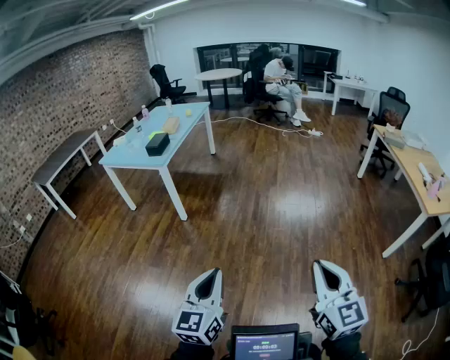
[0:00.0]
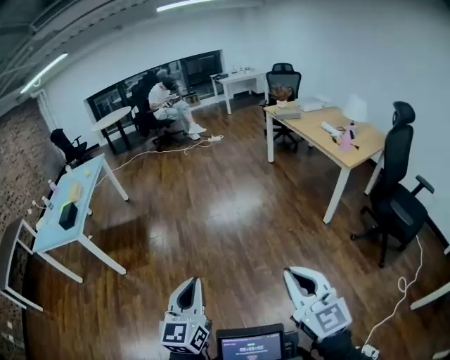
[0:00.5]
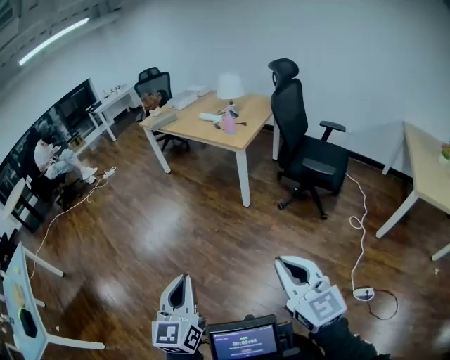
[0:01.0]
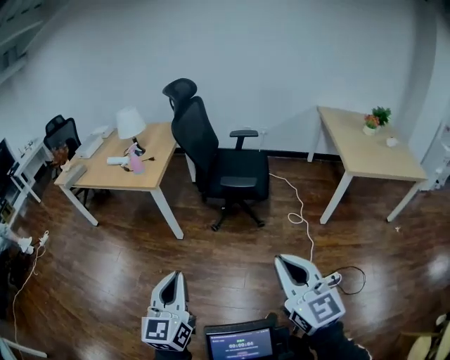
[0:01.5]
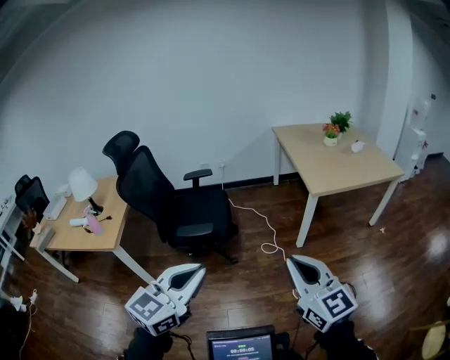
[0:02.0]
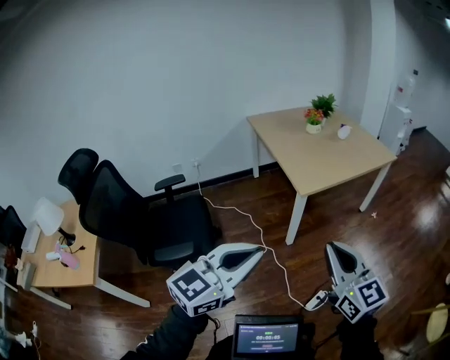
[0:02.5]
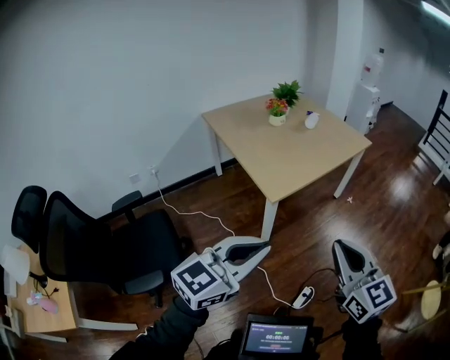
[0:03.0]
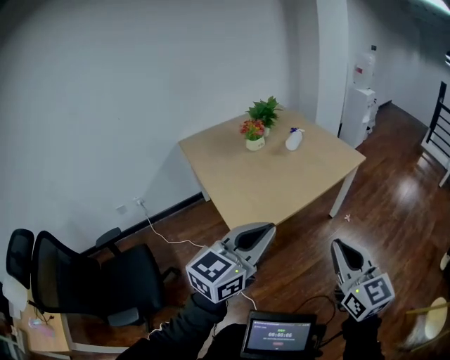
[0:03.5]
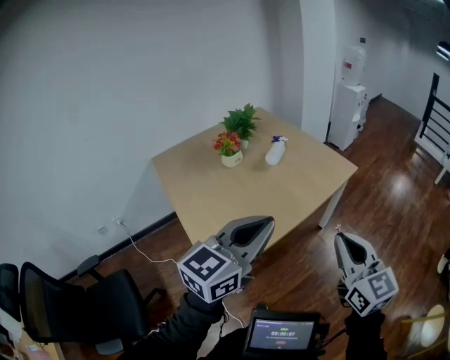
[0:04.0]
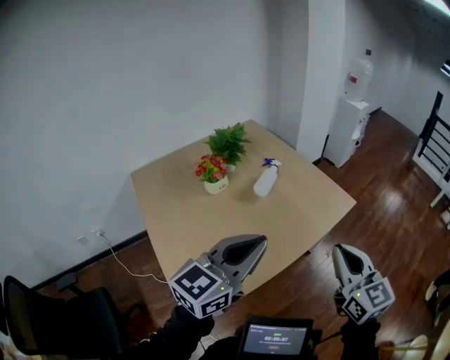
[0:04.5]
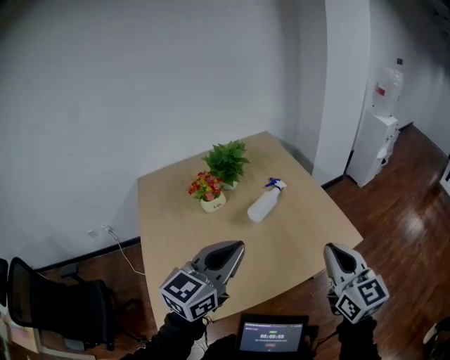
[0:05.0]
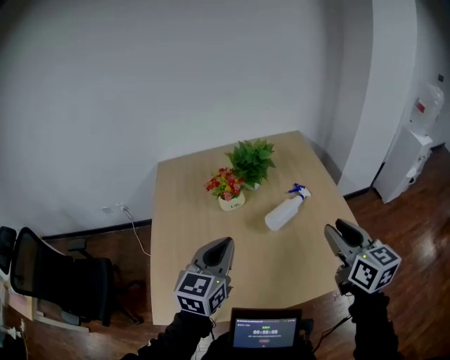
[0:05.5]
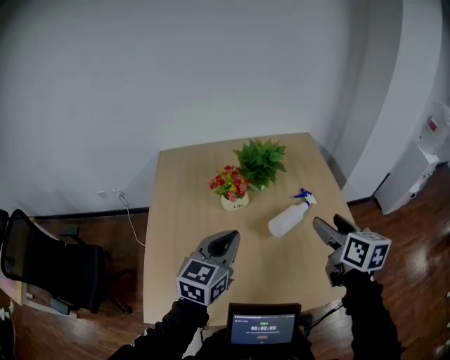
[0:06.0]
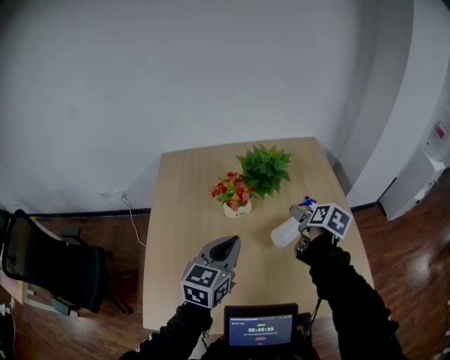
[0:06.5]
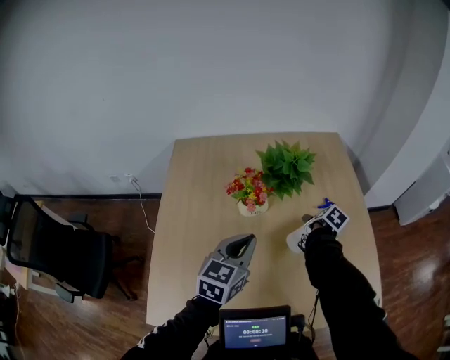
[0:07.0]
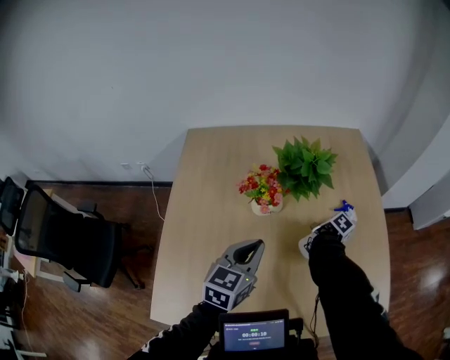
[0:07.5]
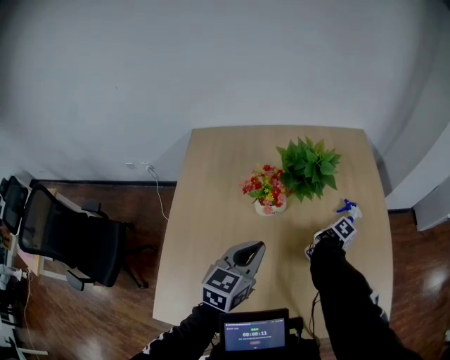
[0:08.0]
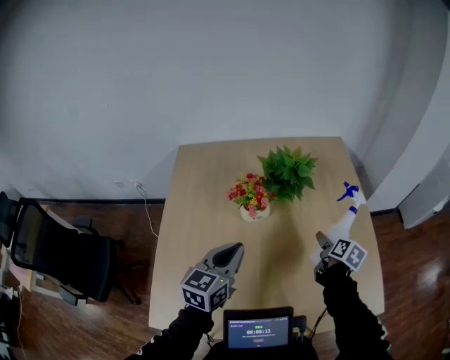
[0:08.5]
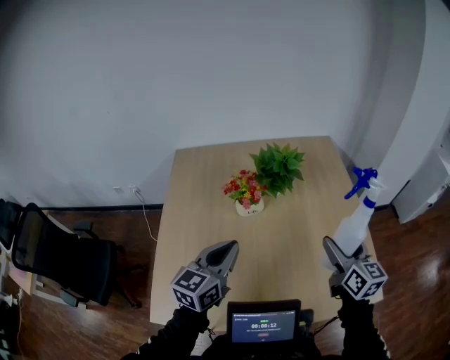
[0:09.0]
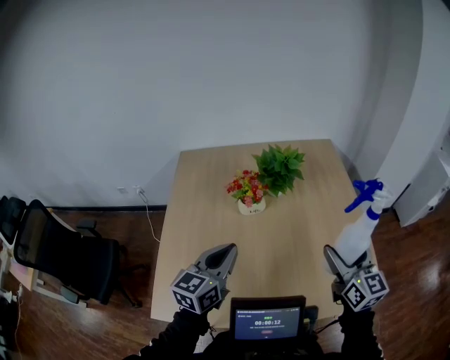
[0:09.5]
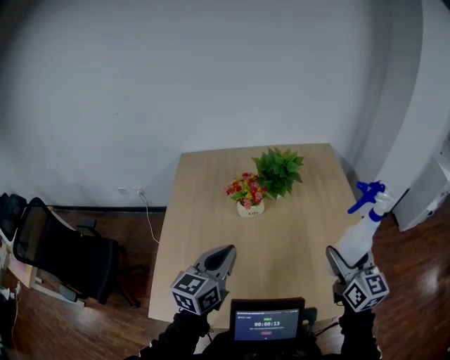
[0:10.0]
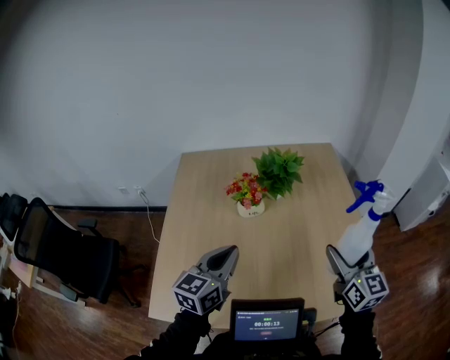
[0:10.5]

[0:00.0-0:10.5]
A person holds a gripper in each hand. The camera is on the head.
0:00.0 to 0:02.0: Both grippers are carried roughly 1 m. The left gripper turns by about 130 degrees. The right gripper swivels approximately 90 degrees.
0:02.0 to 0:04.0: The pair of grippers is taken roughly 1 m. The left gripper swivels approximately 40 degrees. Meanwhile the right gripper turns by some 40 degrees.
0:04.0 to 0:06.5: Both grippers are carried approximately 70 cm. The right gripper points its fingers some 40 degrees further downward, and opens up, while the left gripper swivels approximately 50 degrees.
0:06.5 to 0:08.5: The left gripper is displaced forward and to the left by about 5 cm; the right gripper goes some 15 cm downward and forward.
0:08.5 to 0:10.5: The right gripper travels upward and backward by about 30 cm, and angles its fingers upward, by some 40 degrees. Meanwhile the left gripper goes approximately 10 cm backward.

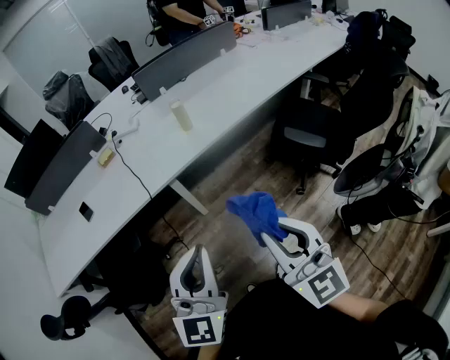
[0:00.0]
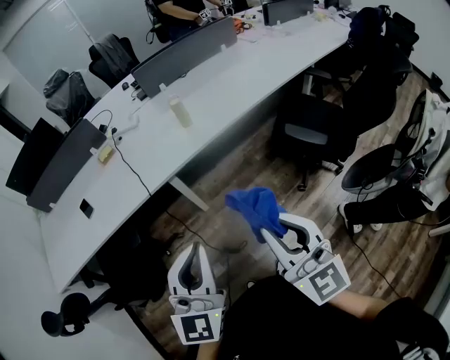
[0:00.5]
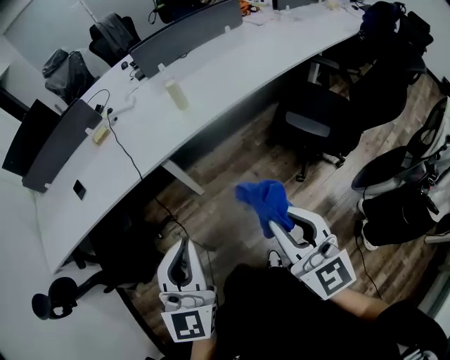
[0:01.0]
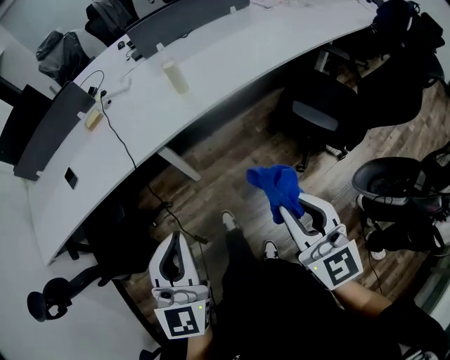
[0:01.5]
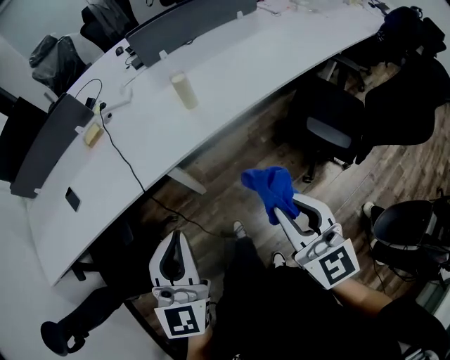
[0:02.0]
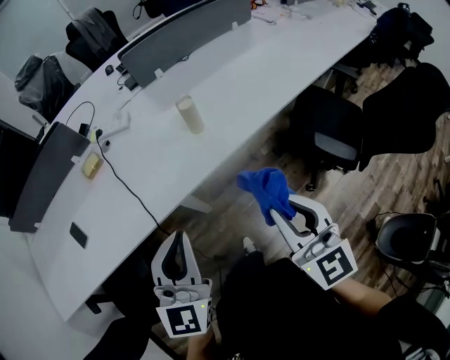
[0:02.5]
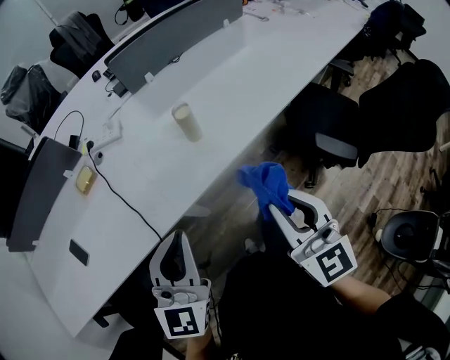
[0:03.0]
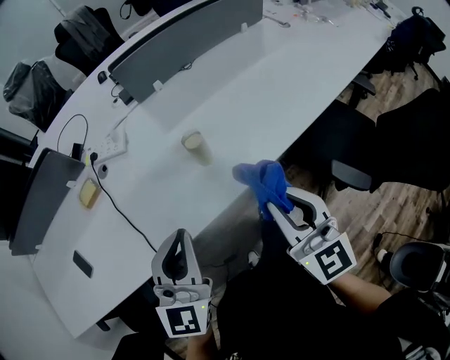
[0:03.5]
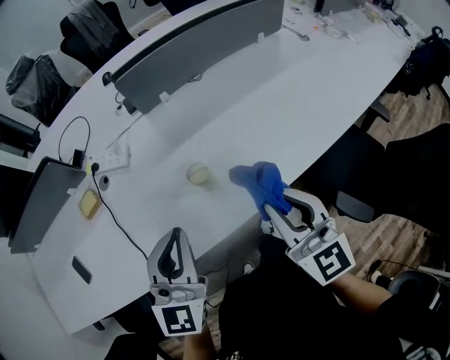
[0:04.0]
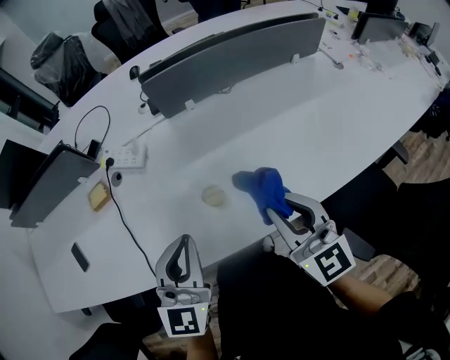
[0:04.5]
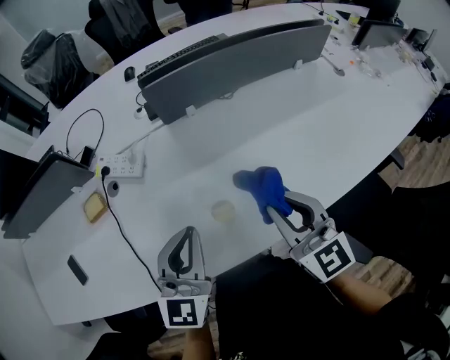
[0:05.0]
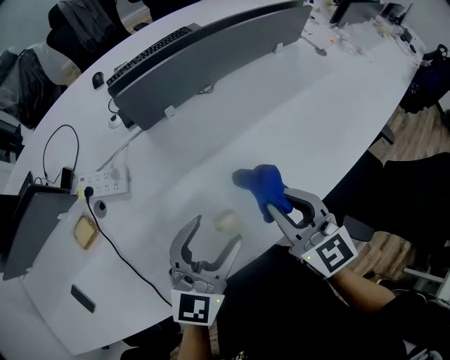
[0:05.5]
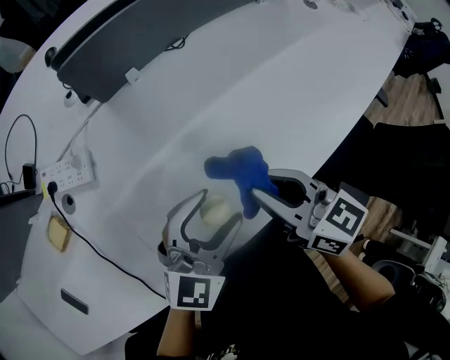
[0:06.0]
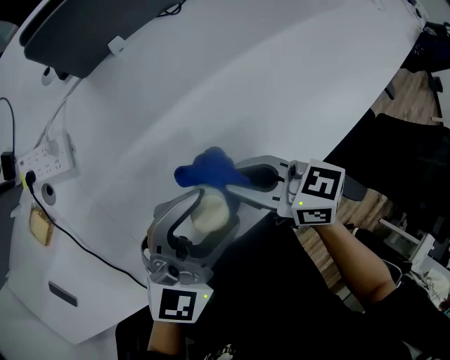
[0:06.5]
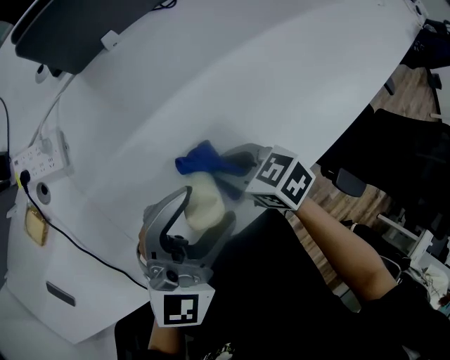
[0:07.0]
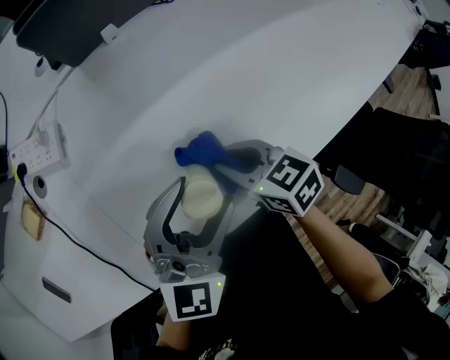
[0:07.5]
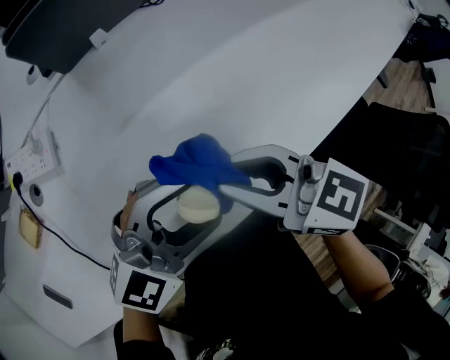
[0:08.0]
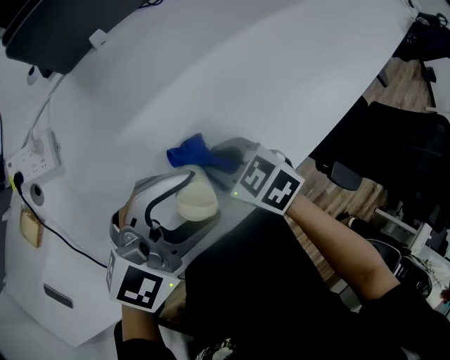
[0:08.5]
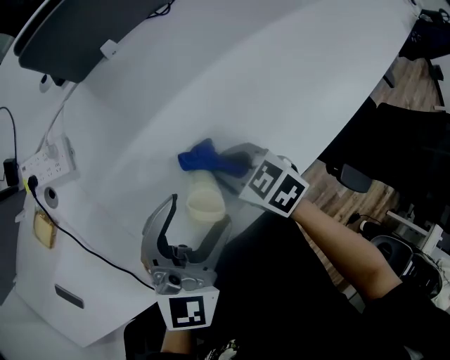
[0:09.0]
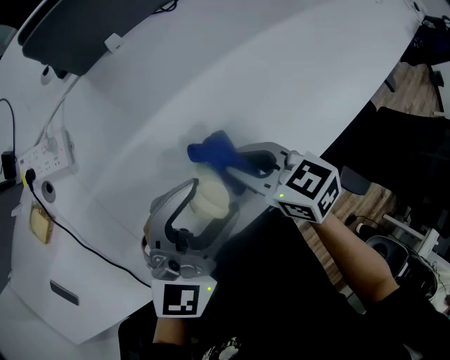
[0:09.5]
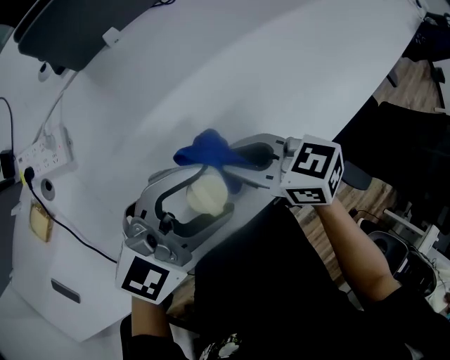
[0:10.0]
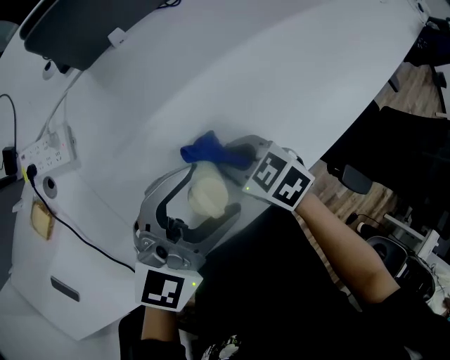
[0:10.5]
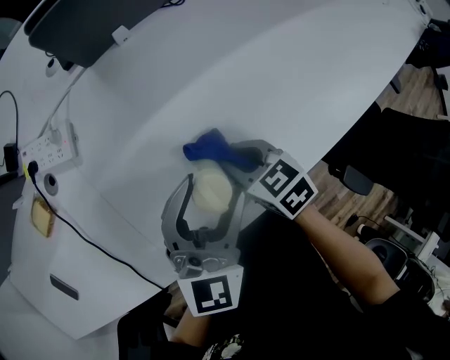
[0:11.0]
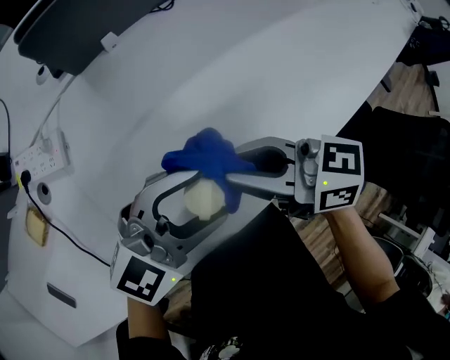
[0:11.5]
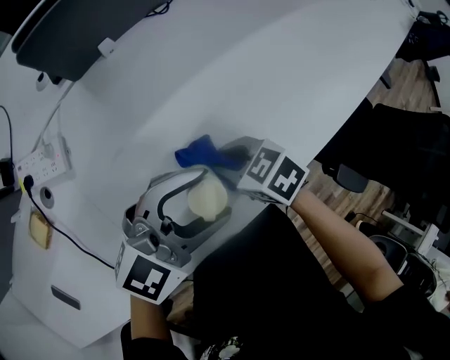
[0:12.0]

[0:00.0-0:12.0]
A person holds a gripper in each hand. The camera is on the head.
0:00.0 to 0:02.0: The right gripper is displaced forward and downward by about 15 cm. The left gripper moves forward, some 15 cm.
0:02.0 to 0:04.0: The grippers both shift forward by about 35 cm.
0:04.0 to 0:06.0: The left gripper heads downward, forward and to the right, covering about 20 cm, changes its angle by some 40 degrees, and opens up, while the right gripper moves forward and downward, approximately 15 cm, and changes its angle by some 30 degrees.
0:06.0 to 0:08.0: The left gripper swivels about 20 degrees. The right gripper goes downward and returns, approximately 15 cm each way.
0:08.0 to 0:10.0: The right gripper travels downward by roughly 10 cm.
0:10.0 to 0:12.0: The right gripper swings up and down, roughly 15 cm each way, with 2 reversals, and changes its angle by some 20 degrees.

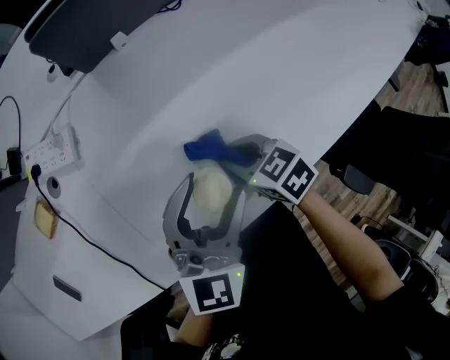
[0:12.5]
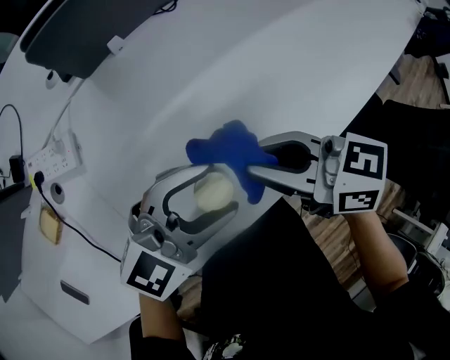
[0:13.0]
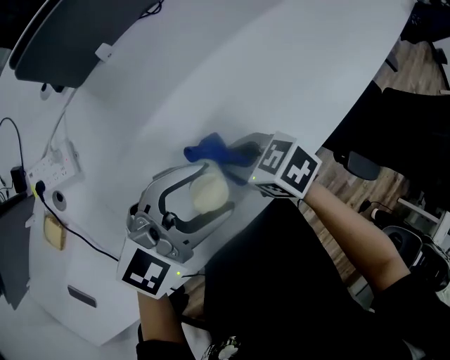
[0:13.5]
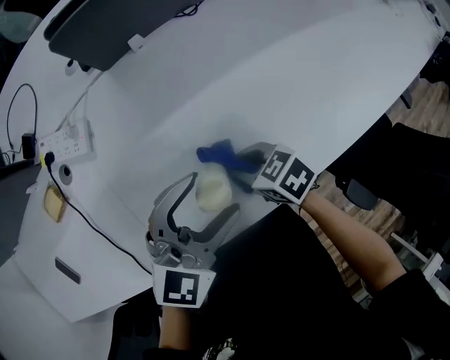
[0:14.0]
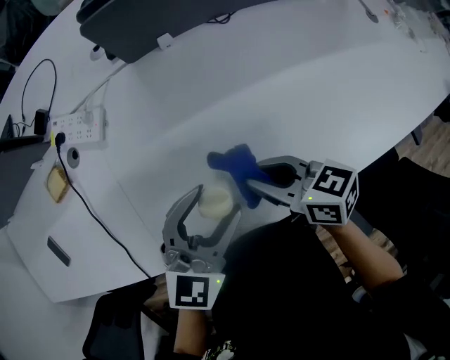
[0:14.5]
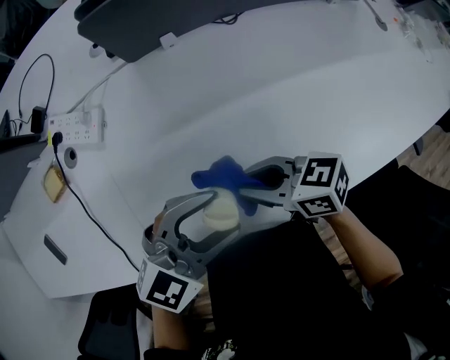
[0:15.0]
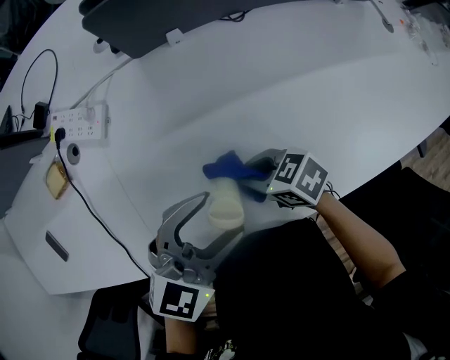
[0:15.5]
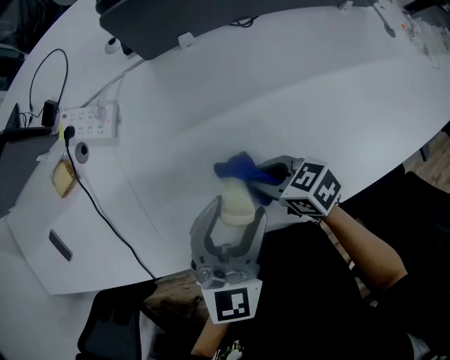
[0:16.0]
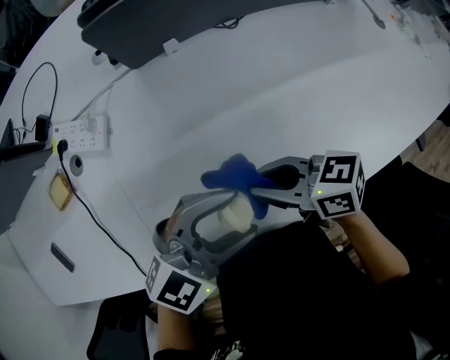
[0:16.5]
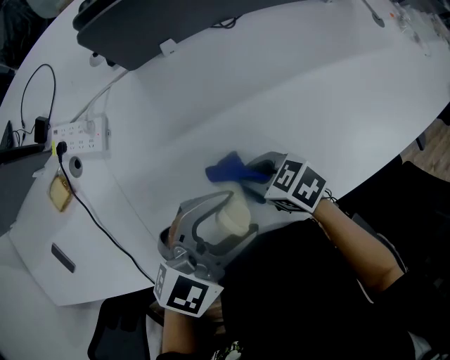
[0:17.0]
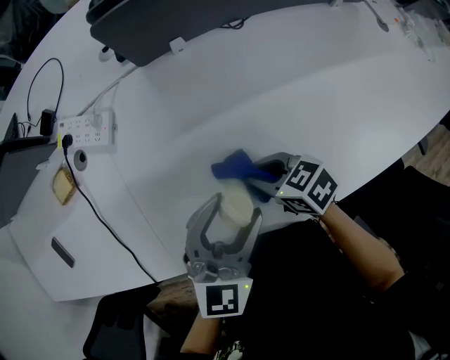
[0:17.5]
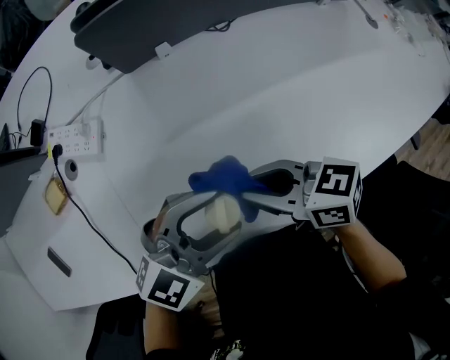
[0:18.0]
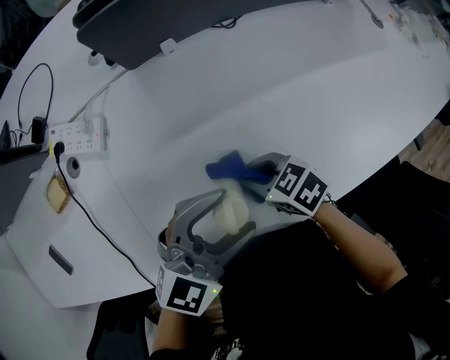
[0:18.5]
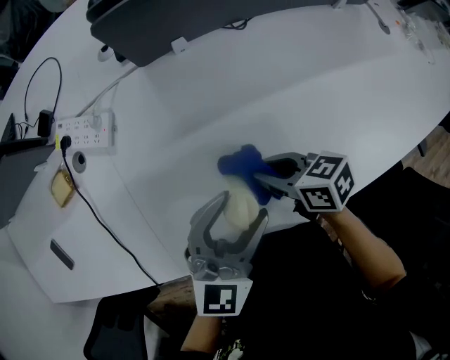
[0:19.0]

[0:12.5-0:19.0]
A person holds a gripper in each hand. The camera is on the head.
0:12.5 to 0:14.5: The right gripper goes up and down, approximately 15 cm each way, reversing 2 times, and turns by roughly 20 degrees.
0:14.5 to 0:17.0: The right gripper goes up and down, approximately 10 cm each way, reversing 2 times, and swivels about 30 degrees, while the left gripper changes its angle by roughly 20 degrees.
0:17.0 to 0:19.0: The right gripper goes up and down, some 10 cm each way, reversing 2 times, and swivels roughly 20 degrees; the left gripper turns by approximately 30 degrees.
